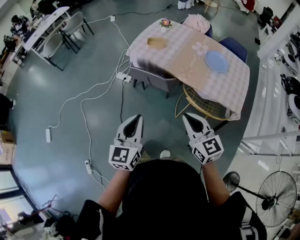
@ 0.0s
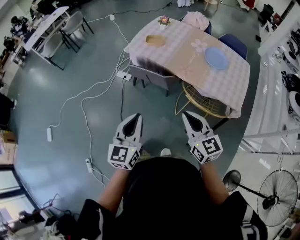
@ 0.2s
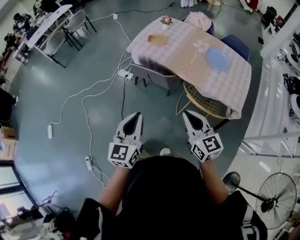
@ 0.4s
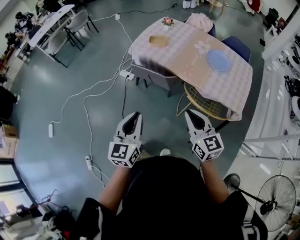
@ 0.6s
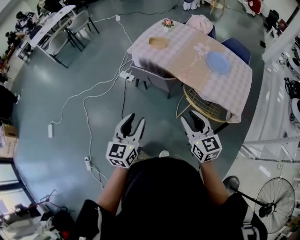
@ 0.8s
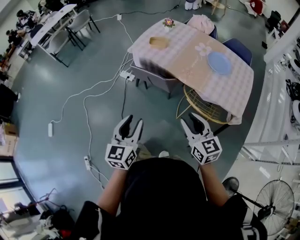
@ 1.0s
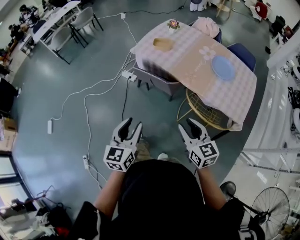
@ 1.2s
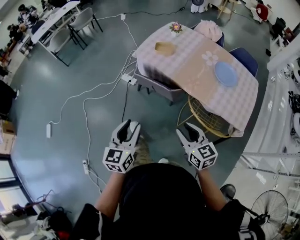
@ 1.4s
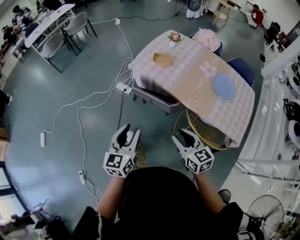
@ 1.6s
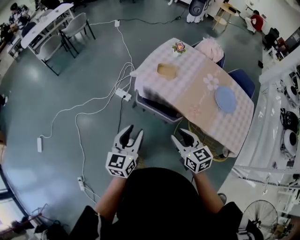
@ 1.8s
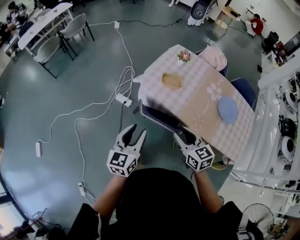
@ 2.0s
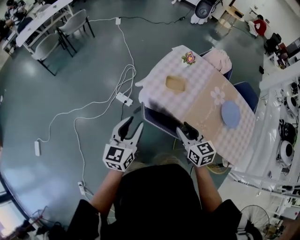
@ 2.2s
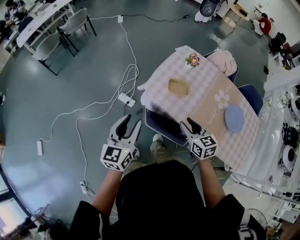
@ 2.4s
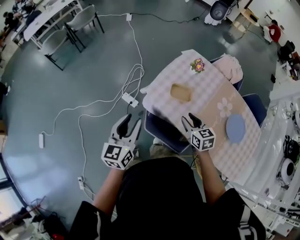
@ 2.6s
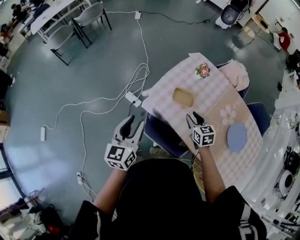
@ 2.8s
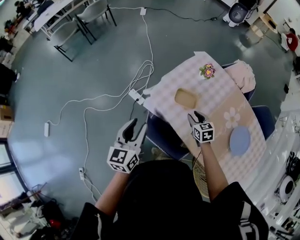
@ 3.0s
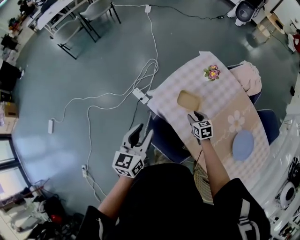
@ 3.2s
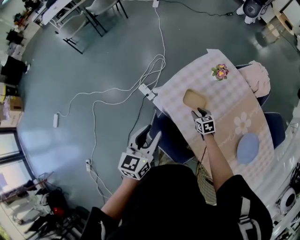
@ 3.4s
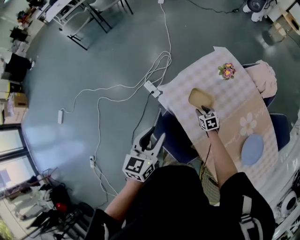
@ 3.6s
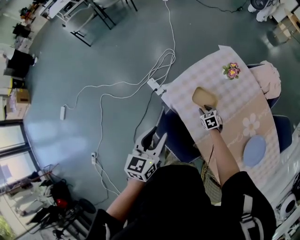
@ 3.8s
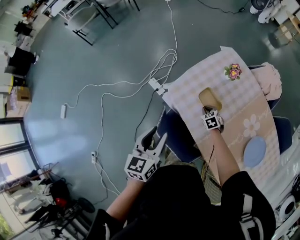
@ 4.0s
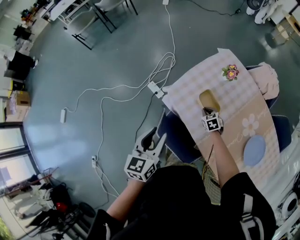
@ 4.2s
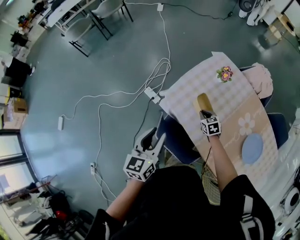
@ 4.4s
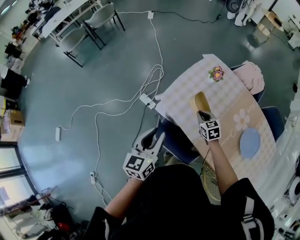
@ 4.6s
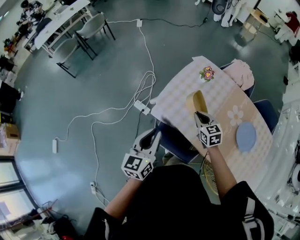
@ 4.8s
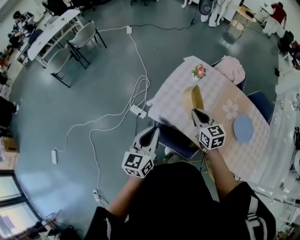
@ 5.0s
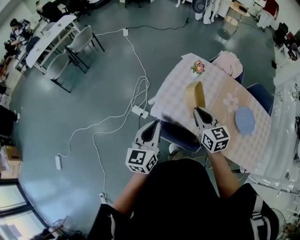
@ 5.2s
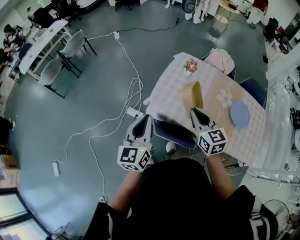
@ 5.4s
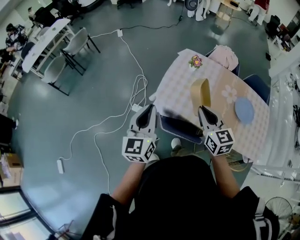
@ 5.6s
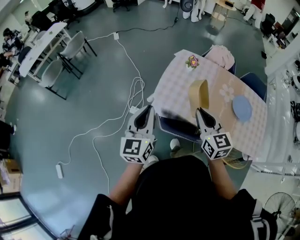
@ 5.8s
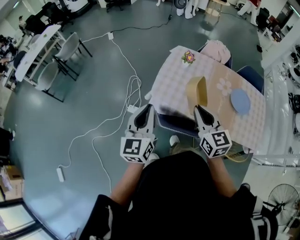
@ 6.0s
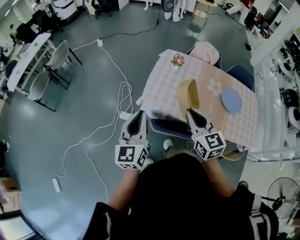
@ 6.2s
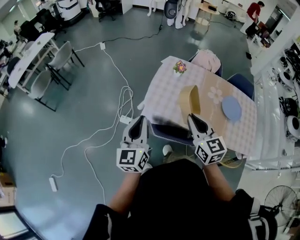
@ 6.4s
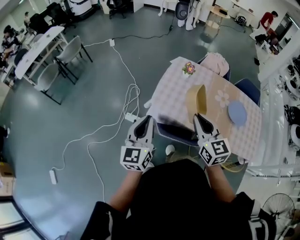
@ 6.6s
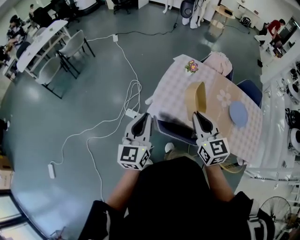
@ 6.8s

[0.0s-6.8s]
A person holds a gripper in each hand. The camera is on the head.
0.0s to 1.4s: The left gripper moves forward and downward, approximately 10 cm, and opens its fingers. Meanwhile the right gripper heads downward and forward, covering approximately 10 cm, and opens.
1.4s to 2.8s: The pair of grippers is taken forward, approximately 50 cm.
2.8s to 4.0s: The right gripper travels downward by about 20 cm, swivels some 30 degrees, and closes. The left gripper moves to the right and downward, approximately 10 cm.
4.0s to 5.4s: The left gripper moves upward and to the left, some 15 cm, turns by some 30 degrees, and closes up. The right gripper travels upward by about 40 cm, and tilts its fingers approximately 40 degrees upward.
5.4s to 6.8s: The left gripper heads to the left, covering some 5 cm; the right gripper travels backward and to the left by about 10 cm.

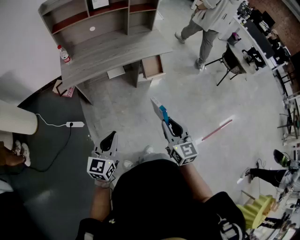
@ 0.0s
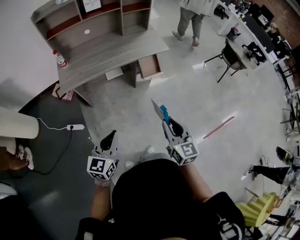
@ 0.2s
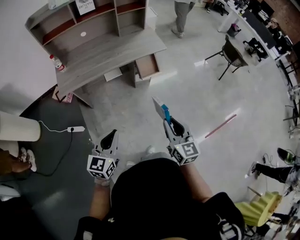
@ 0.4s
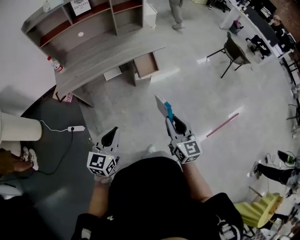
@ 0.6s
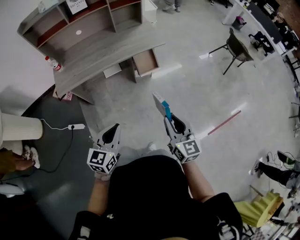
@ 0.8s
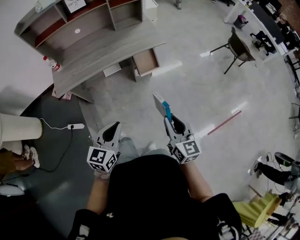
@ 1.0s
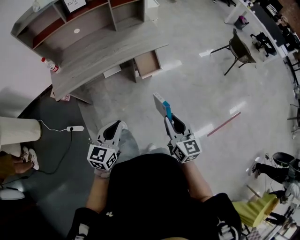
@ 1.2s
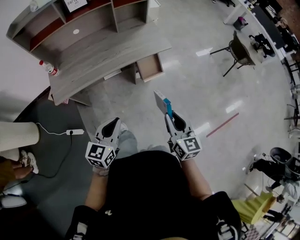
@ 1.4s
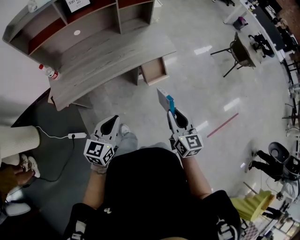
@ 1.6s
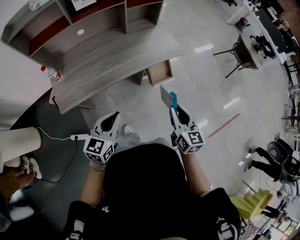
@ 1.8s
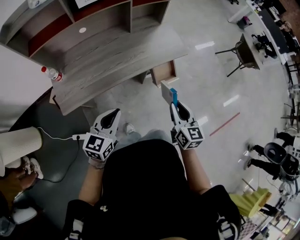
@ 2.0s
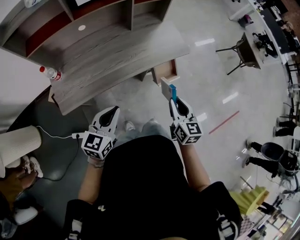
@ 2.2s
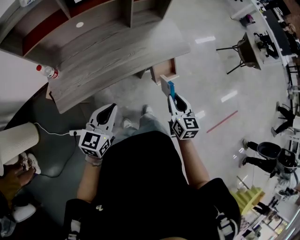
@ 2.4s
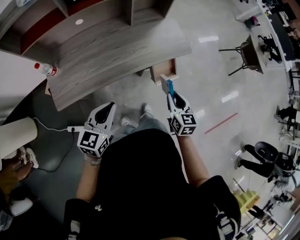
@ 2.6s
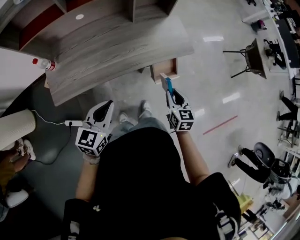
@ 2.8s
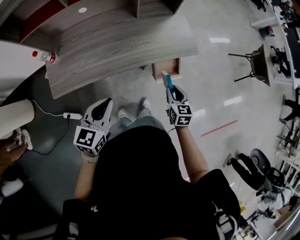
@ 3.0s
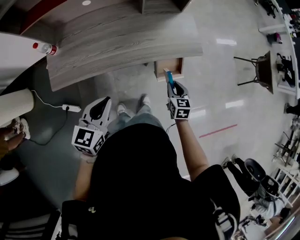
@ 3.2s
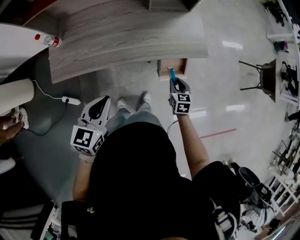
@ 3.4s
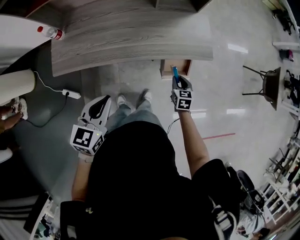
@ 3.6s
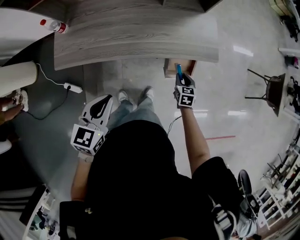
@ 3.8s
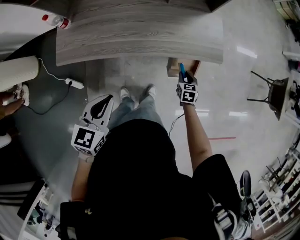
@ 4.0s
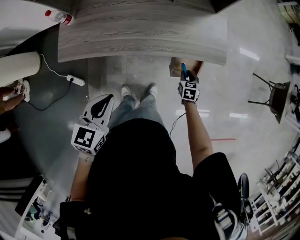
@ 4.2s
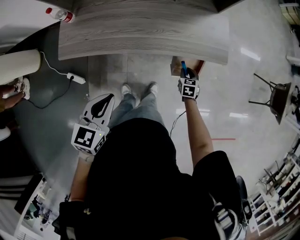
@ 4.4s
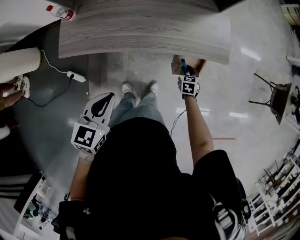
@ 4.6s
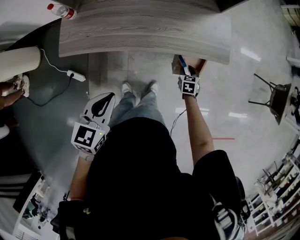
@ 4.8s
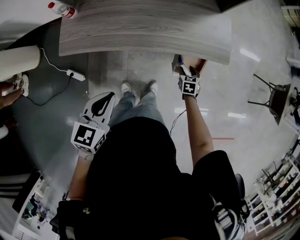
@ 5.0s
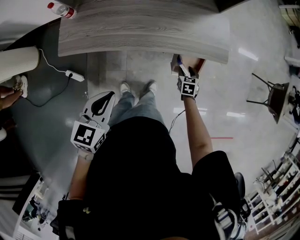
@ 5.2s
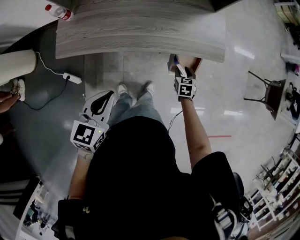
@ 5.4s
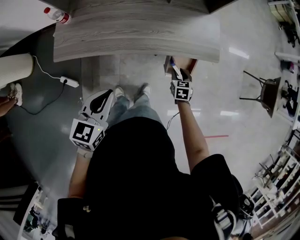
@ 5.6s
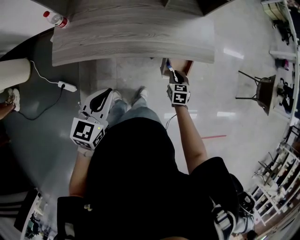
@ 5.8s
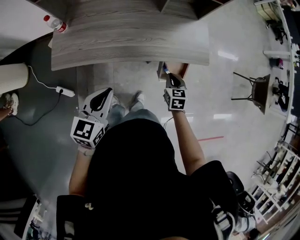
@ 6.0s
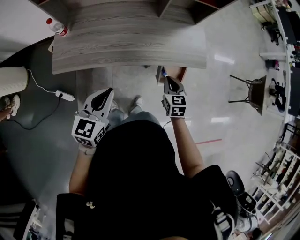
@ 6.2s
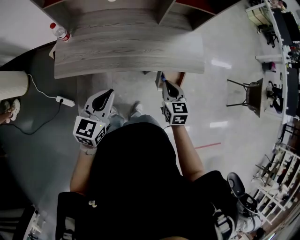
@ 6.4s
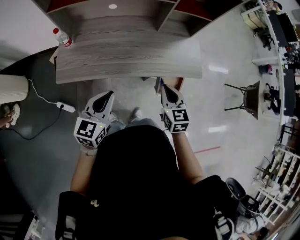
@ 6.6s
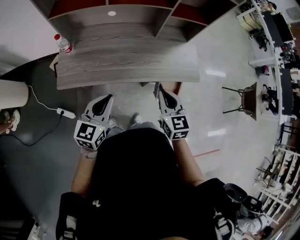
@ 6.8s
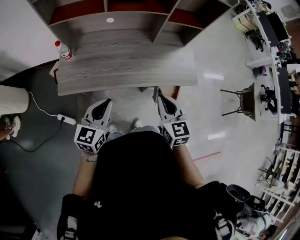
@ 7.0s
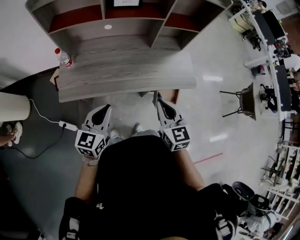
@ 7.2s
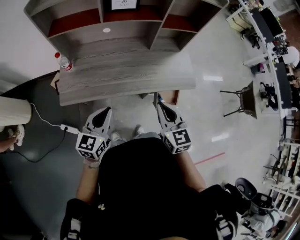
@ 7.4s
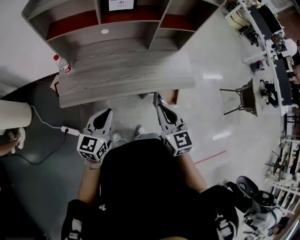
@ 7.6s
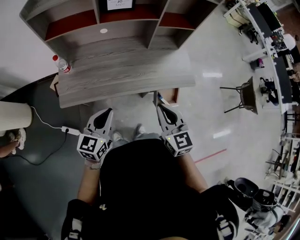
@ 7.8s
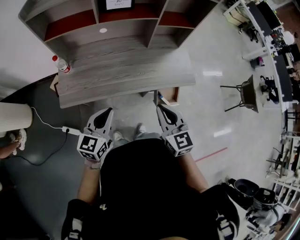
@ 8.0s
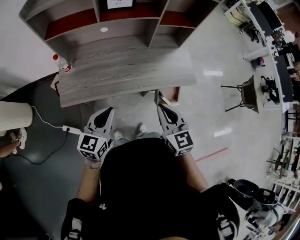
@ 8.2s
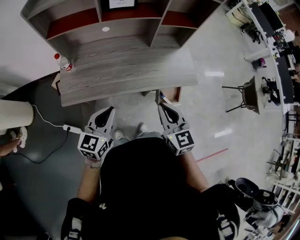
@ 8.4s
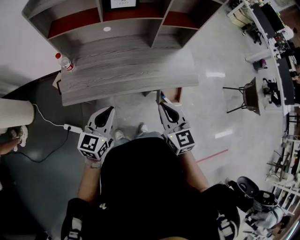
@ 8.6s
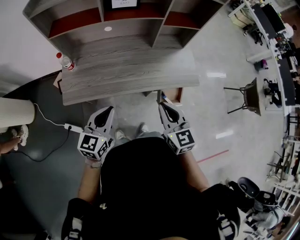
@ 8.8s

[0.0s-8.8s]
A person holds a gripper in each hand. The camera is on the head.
0.0s to 1.4s: Both grippers move forward, about 20 cm.
1.4s to 3.0s: The right gripper heads forward and downward, covering about 30 cm, and turns by about 20 degrees. The left gripper is displaced forward and to the left by some 20 cm.
3.0s to 4.4s: The right gripper travels downward and forward by about 20 cm, and turns by about 20 degrees.
4.4s to 5.8s: The right gripper heads upward, covering approximately 10 cm, and opens, then closes once more.
5.8s to 7.4s: The right gripper shifts some 35 cm upward and to the left, and points its fingers approximately 30 degrees further upward, while the left gripper shifts roughly 5 cm upward and to the left.
7.4s to 8.8s: The grippers make only small movements.

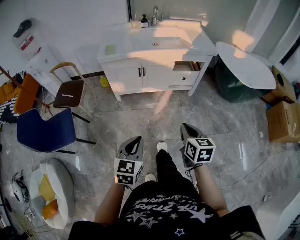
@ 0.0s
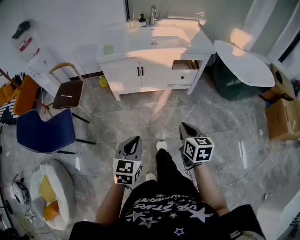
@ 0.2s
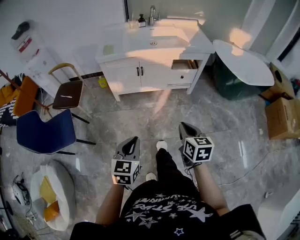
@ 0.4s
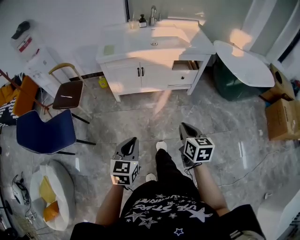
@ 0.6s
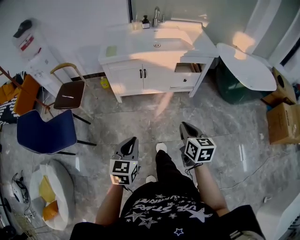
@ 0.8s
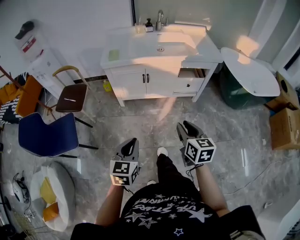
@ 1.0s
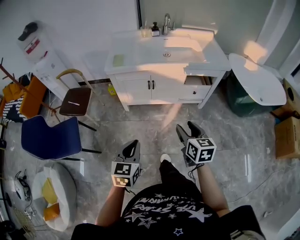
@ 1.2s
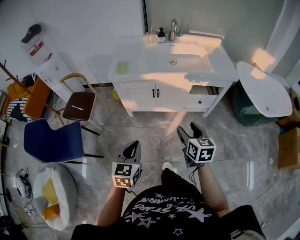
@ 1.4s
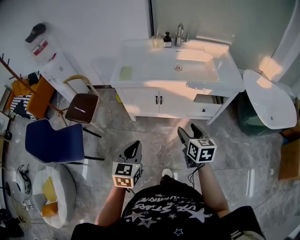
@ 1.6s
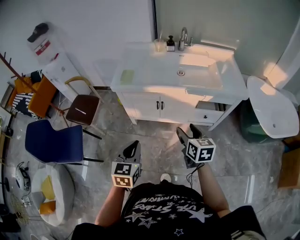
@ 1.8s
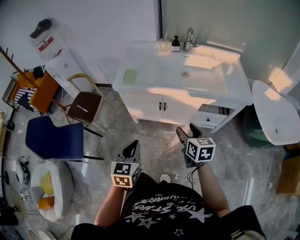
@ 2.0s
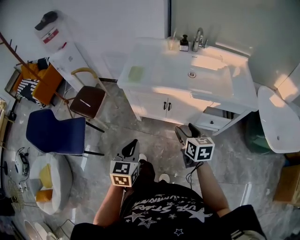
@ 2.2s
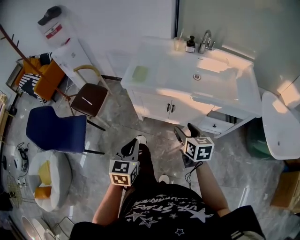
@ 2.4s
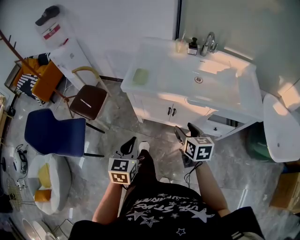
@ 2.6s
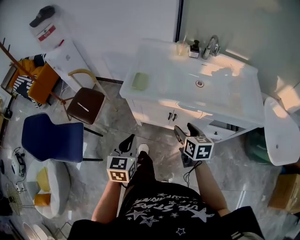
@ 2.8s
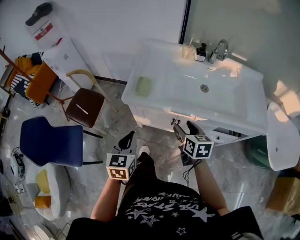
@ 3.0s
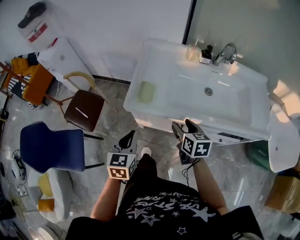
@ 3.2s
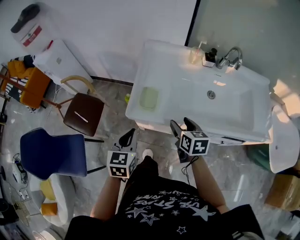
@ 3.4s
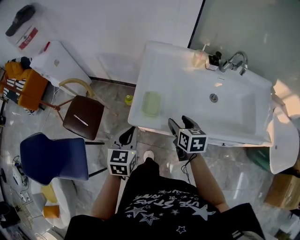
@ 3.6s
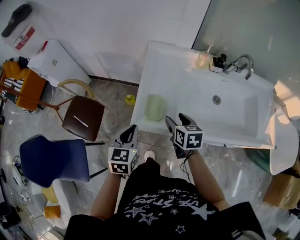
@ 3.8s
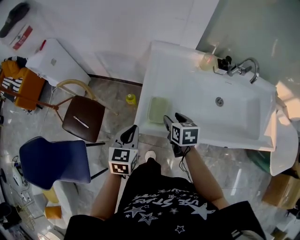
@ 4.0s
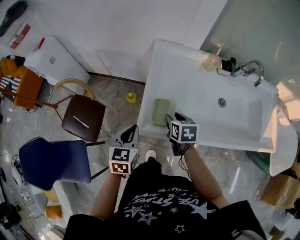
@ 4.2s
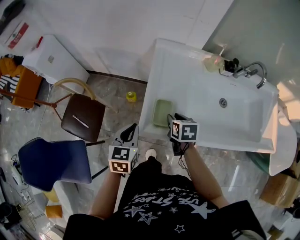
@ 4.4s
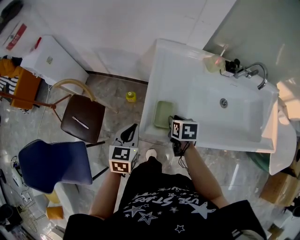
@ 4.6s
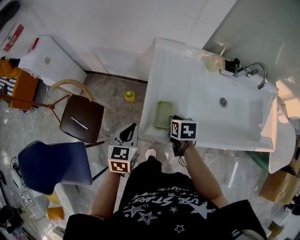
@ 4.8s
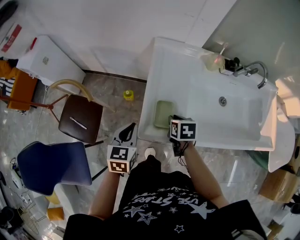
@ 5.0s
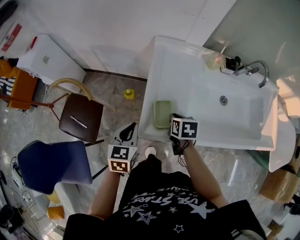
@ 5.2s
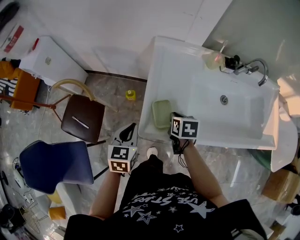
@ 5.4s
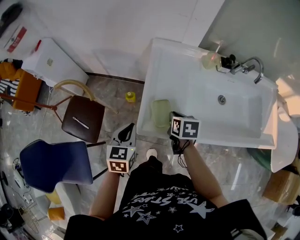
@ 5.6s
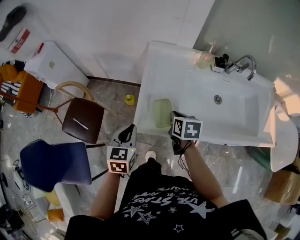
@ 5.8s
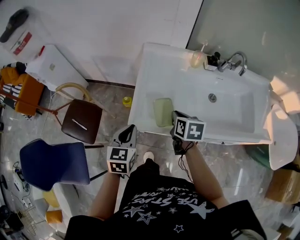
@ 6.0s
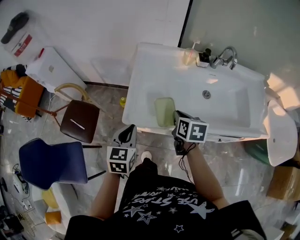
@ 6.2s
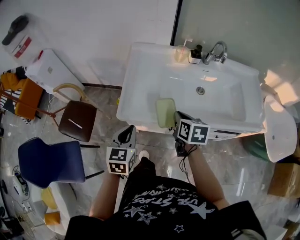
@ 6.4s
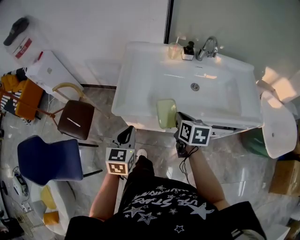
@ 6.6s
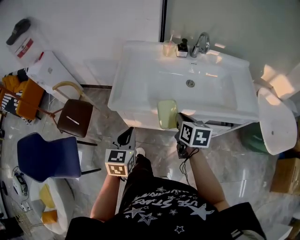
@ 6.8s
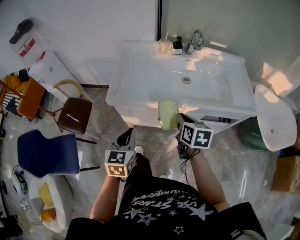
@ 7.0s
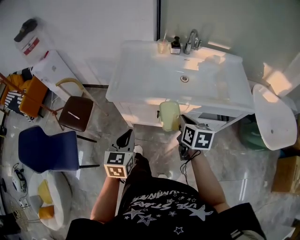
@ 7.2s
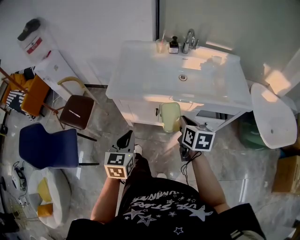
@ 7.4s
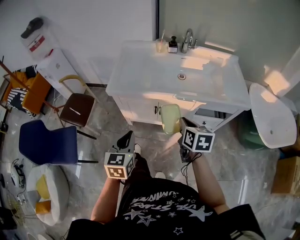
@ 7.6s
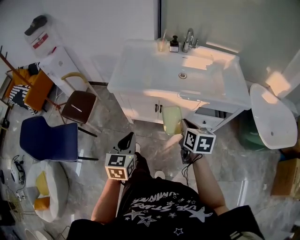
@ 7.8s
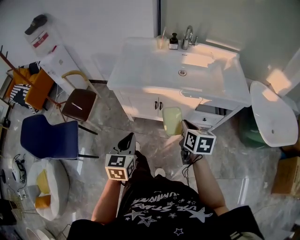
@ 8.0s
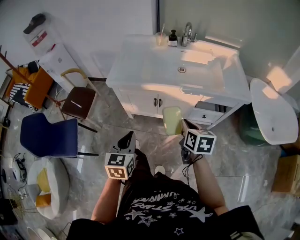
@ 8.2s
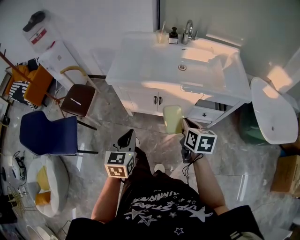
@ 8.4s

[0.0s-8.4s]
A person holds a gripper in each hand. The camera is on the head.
0.0s to 1.4s: Both grippers travel together forward, roughly 20 cm. The right gripper opens.
1.4s to 2.8s: The two grippers go approximately 25 cm forward.
2.8s to 4.2s: The left gripper is displaced forward by about 30 cm, while the right gripper heads forward and to the left, covering roughly 35 cm.
4.2s to 5.6s: The right gripper closes up.
5.6s to 7.0s: The left gripper goes about 30 cm backward and to the right; the right gripper shifts approximately 35 cm backward, to the right and upward.
7.0s to 8.4s: The left gripper moves backward, about 15 cm. Meanwhile the right gripper goes approximately 15 cm backward and to the right.
